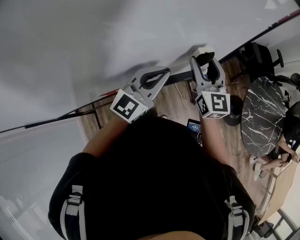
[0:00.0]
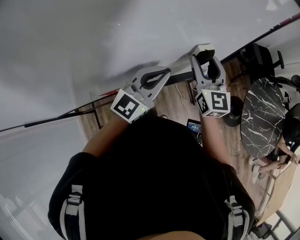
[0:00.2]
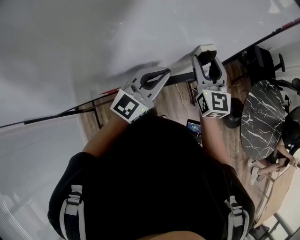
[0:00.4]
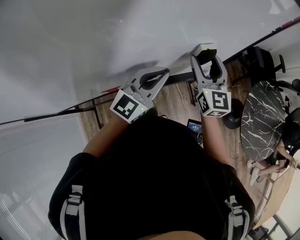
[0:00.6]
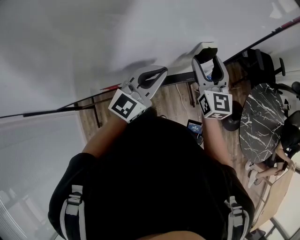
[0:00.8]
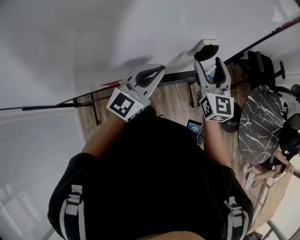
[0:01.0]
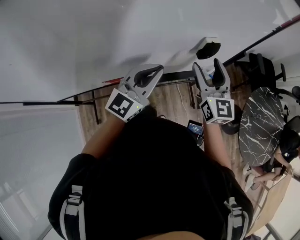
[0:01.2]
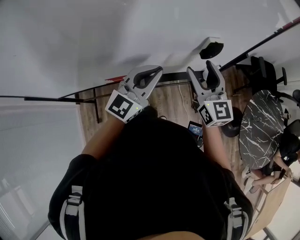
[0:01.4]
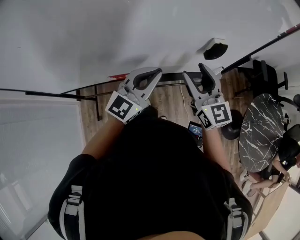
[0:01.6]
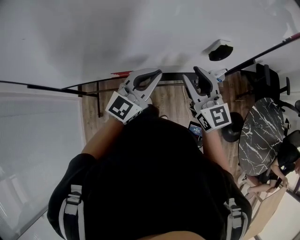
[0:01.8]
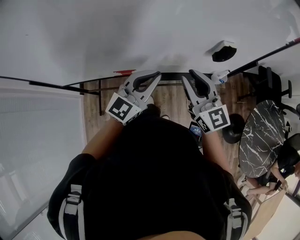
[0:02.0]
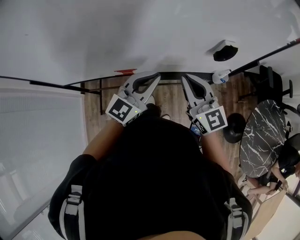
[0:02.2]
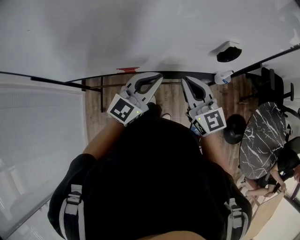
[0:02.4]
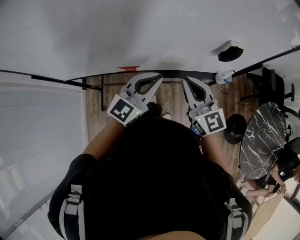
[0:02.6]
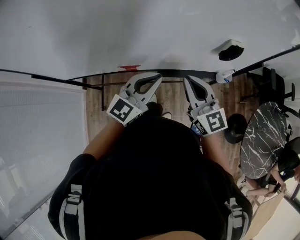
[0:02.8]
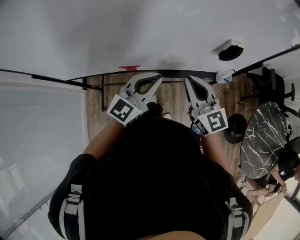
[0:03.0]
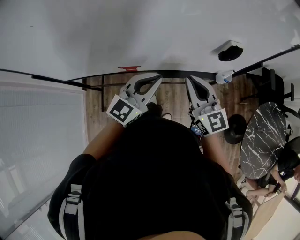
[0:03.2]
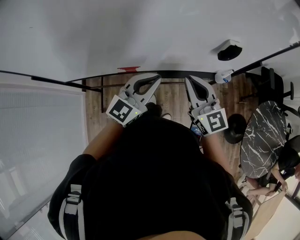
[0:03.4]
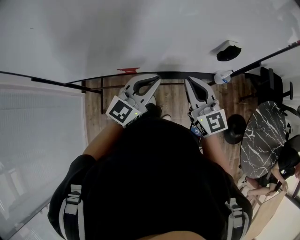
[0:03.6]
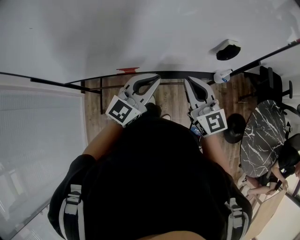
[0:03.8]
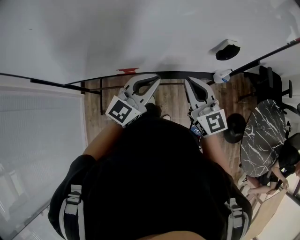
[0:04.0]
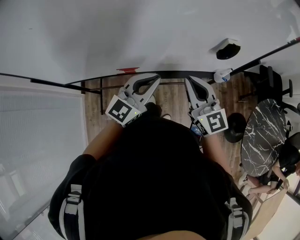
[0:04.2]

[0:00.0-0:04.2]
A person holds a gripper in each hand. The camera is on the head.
0:00.0 to 0:01.4: Both grippers travel together backward, approximately 10 cm.
0:01.4 to 0:02.8: The left gripper shifts some 5 cm to the left. Meanwhile the right gripper goes some 10 cm to the left and backward, and closes.
0:02.8 to 0:04.2: Neither gripper changes place.

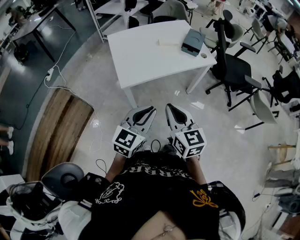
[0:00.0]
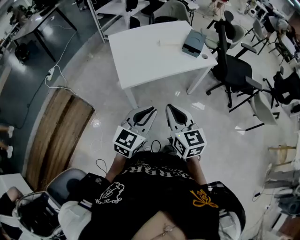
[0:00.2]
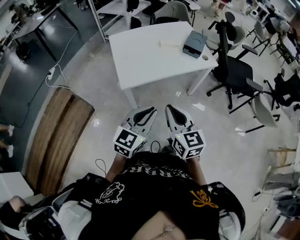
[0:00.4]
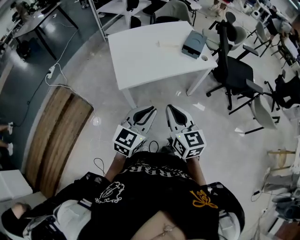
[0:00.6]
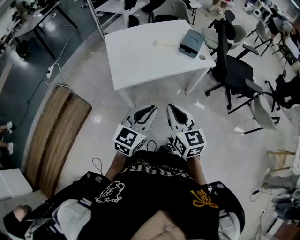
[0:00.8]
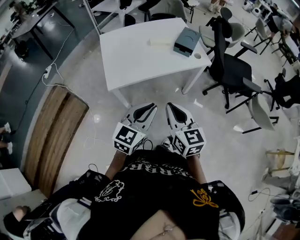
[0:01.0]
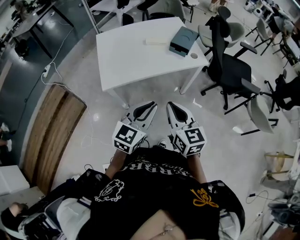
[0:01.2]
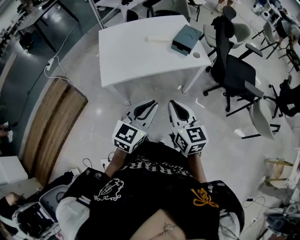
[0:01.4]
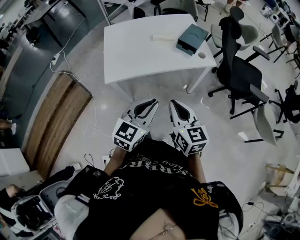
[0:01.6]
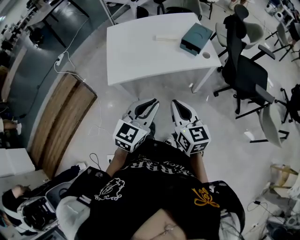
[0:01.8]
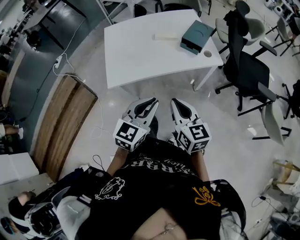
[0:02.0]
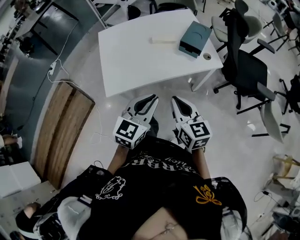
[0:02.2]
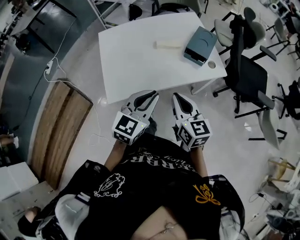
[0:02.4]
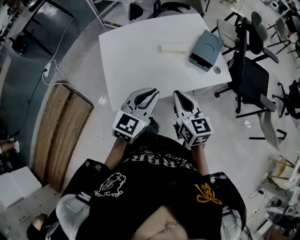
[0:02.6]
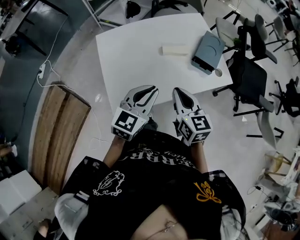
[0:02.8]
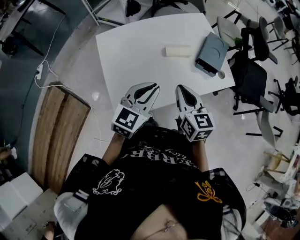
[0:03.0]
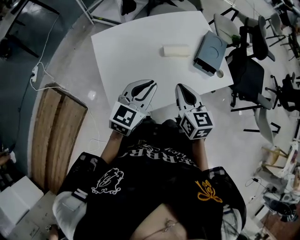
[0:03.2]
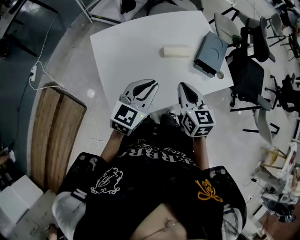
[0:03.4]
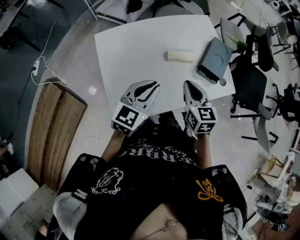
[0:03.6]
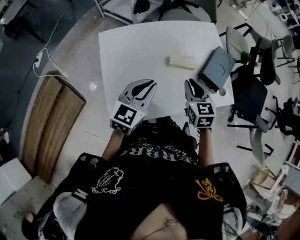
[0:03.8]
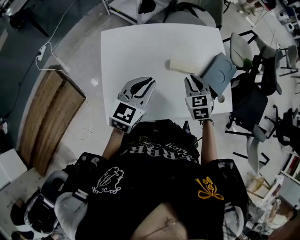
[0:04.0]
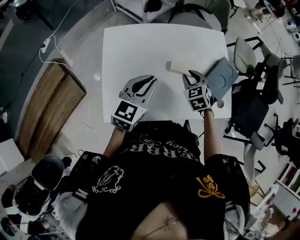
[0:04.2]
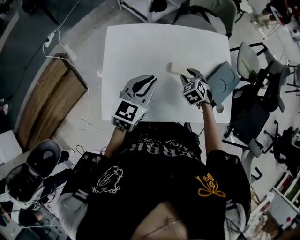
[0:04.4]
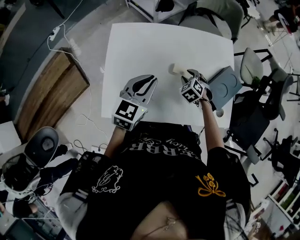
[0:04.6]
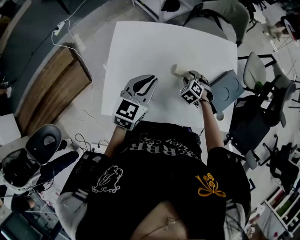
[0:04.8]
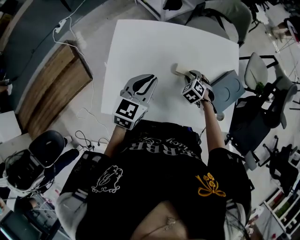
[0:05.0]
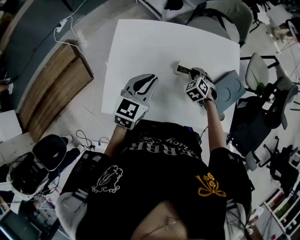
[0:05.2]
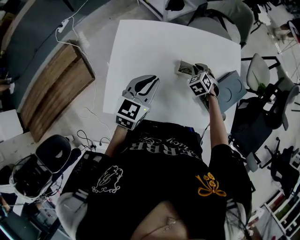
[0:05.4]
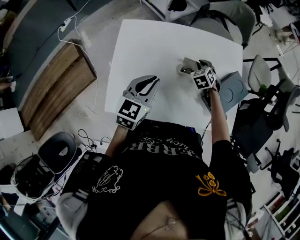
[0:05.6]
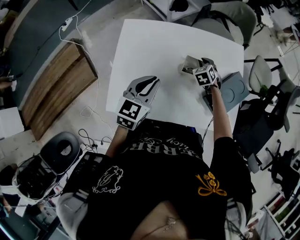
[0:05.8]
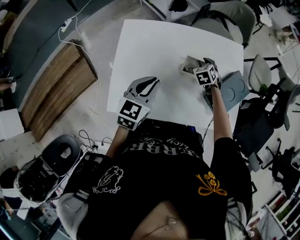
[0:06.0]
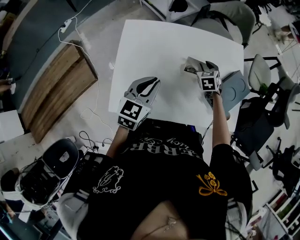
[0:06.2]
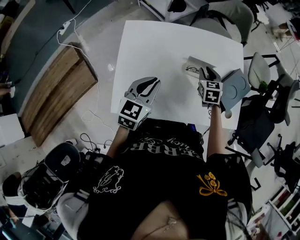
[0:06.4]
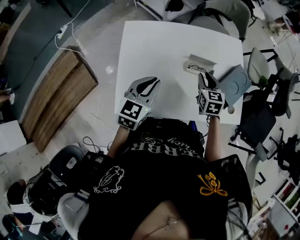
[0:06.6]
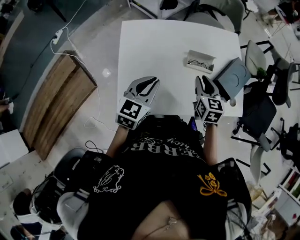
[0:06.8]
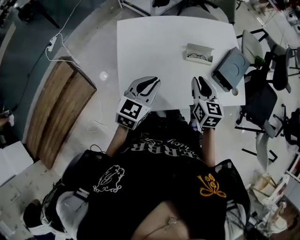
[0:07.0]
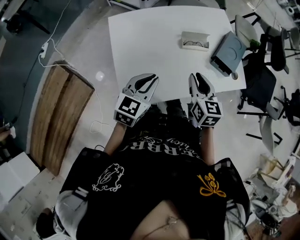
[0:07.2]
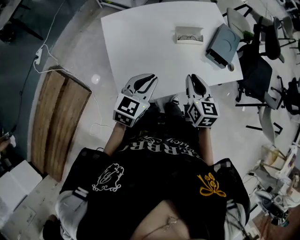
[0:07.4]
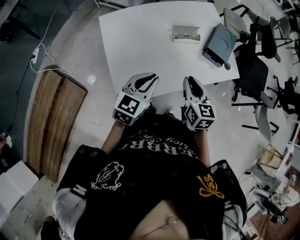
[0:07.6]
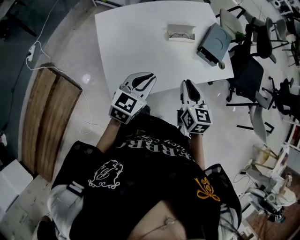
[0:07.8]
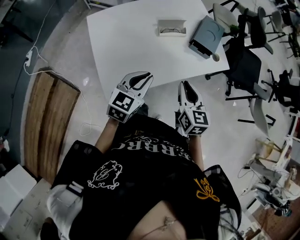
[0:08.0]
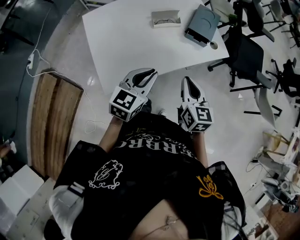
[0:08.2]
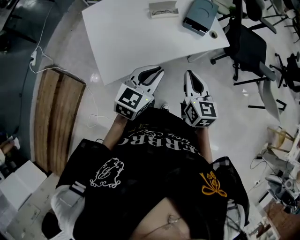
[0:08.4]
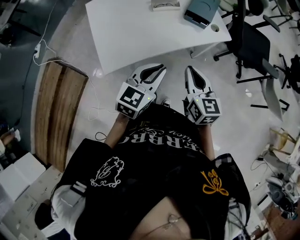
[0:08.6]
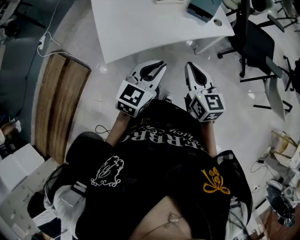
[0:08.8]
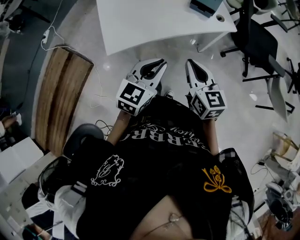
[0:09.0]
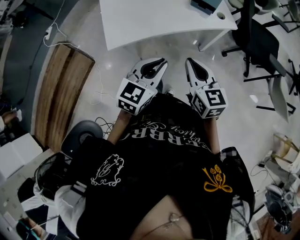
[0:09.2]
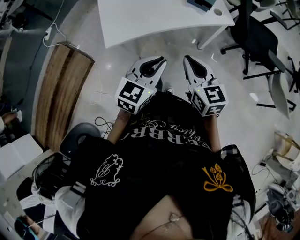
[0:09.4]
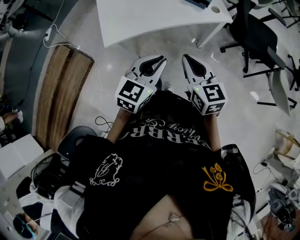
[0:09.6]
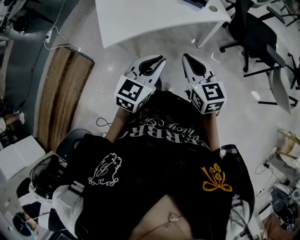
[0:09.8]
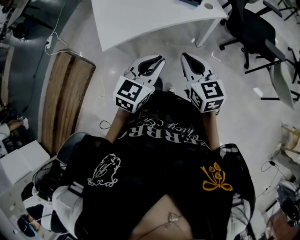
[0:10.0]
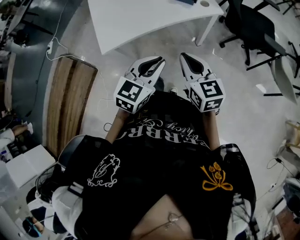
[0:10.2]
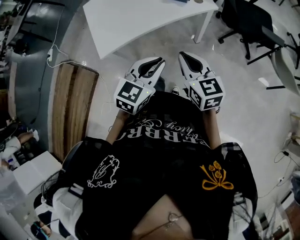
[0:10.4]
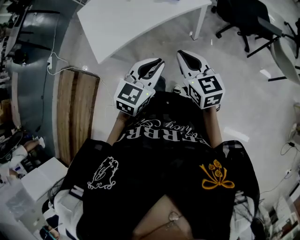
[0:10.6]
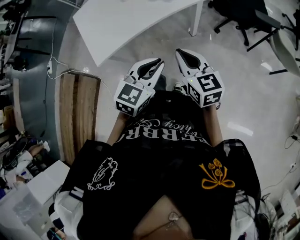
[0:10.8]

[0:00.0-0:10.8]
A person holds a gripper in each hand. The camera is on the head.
0:00.0 to 0:01.6: Both grippers move to the right and forward, some 20 cm.
0:01.6 to 0:03.0: The grippers both shift forward and to the left by about 35 cm.
0:03.0 to 0:04.6: The left gripper goes approximately 15 cm forward, and changes its angle by about 30 degrees, while the right gripper is displaced forward and downward by about 35 cm, rolls counterclockwise, seen from behind, by about 60 degrees, and opens up.
0:04.6 to 0:06.2: The right gripper moves forward, roughly 5 cm, changes its angle by some 30 degrees, and closes, then reopens.
0:06.2 to 0:07.8: The right gripper heads backward, covering roughly 35 cm, and rotates approximately 50 degrees, while the left gripper goes some 15 cm backward, and swivels some 30 degrees.
0:07.8 to 0:09.2: The two grippers go some 30 cm backward and to the right.
0:09.2 to 0:10.8: The grippers both shift to the right by approximately 10 cm.

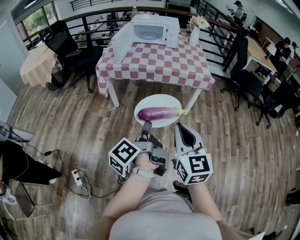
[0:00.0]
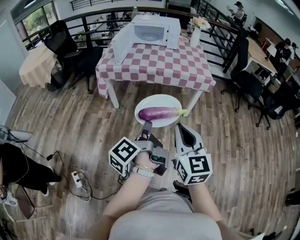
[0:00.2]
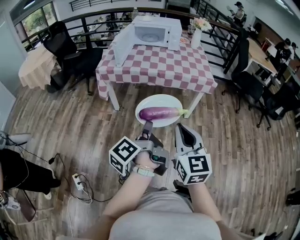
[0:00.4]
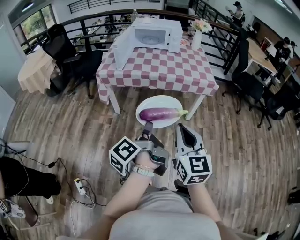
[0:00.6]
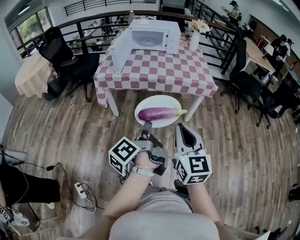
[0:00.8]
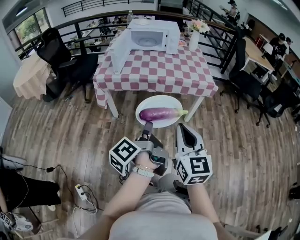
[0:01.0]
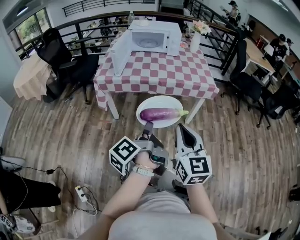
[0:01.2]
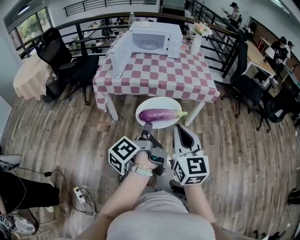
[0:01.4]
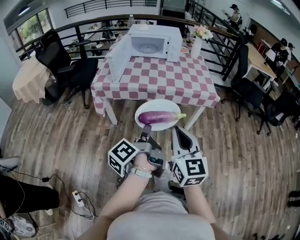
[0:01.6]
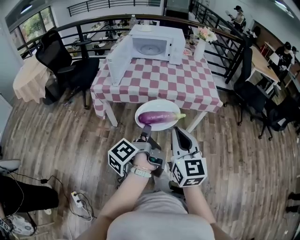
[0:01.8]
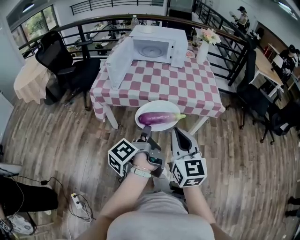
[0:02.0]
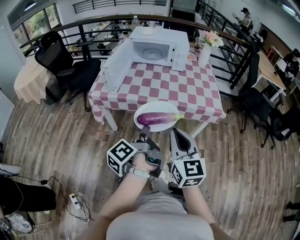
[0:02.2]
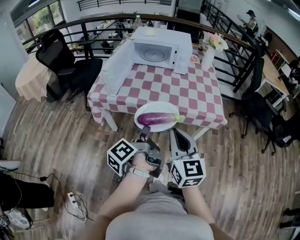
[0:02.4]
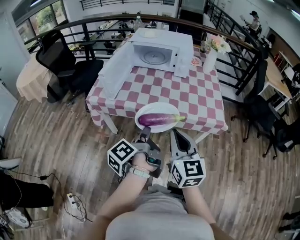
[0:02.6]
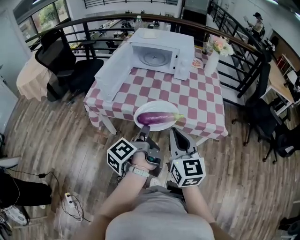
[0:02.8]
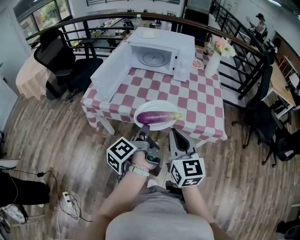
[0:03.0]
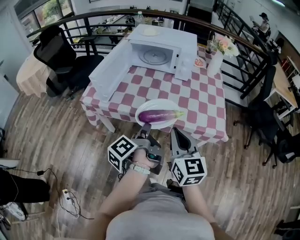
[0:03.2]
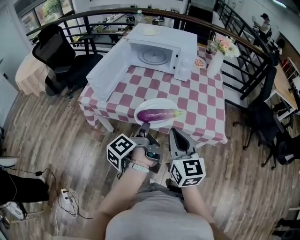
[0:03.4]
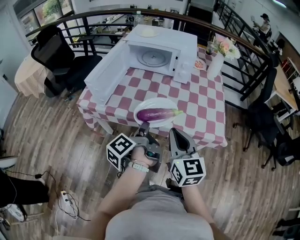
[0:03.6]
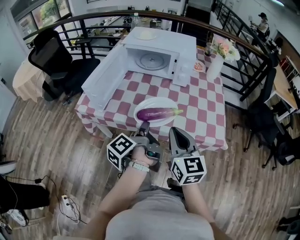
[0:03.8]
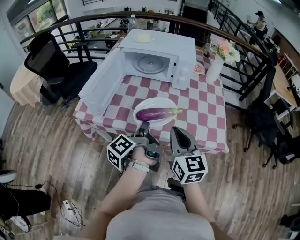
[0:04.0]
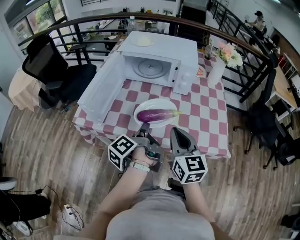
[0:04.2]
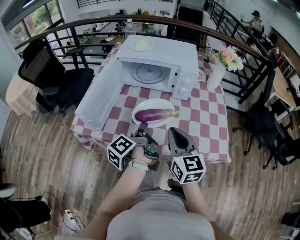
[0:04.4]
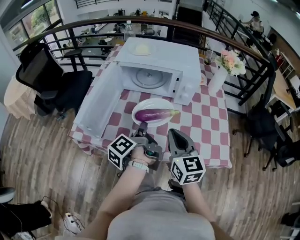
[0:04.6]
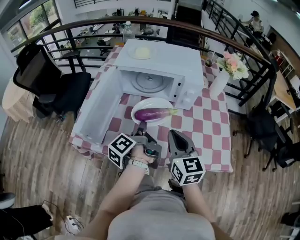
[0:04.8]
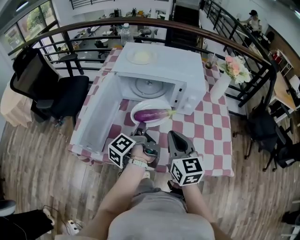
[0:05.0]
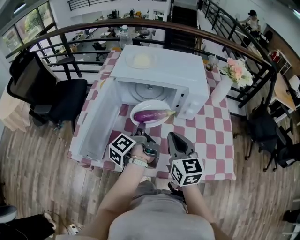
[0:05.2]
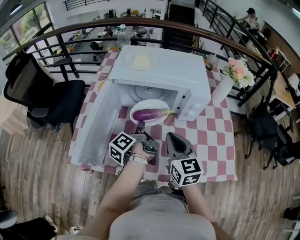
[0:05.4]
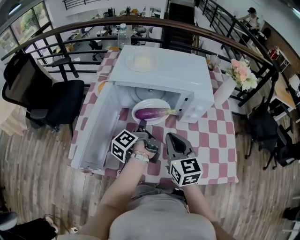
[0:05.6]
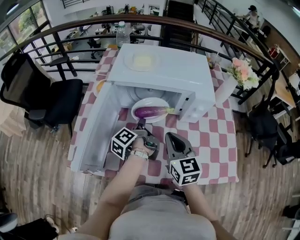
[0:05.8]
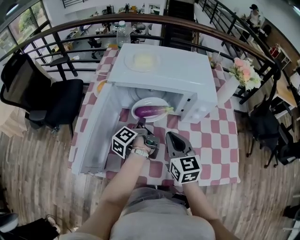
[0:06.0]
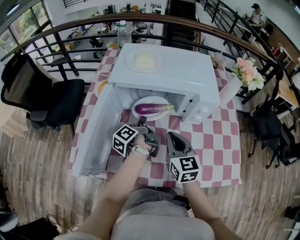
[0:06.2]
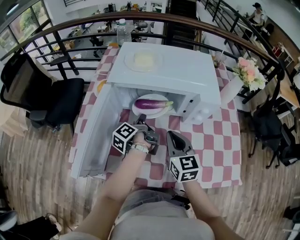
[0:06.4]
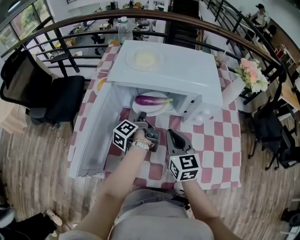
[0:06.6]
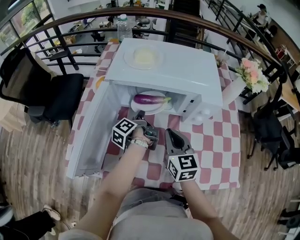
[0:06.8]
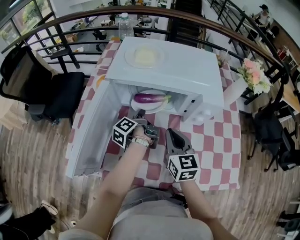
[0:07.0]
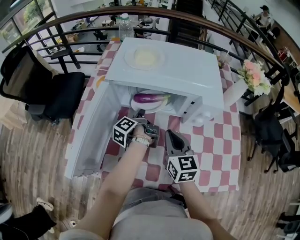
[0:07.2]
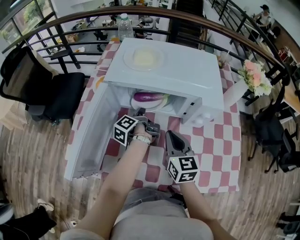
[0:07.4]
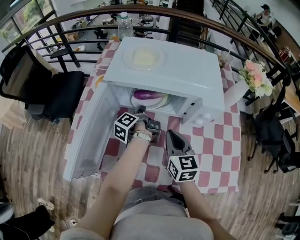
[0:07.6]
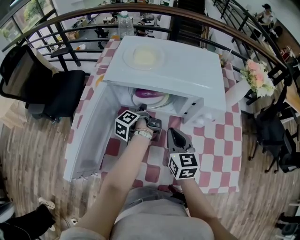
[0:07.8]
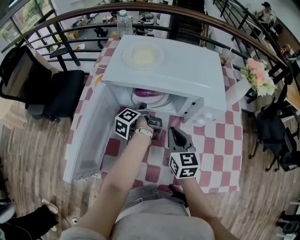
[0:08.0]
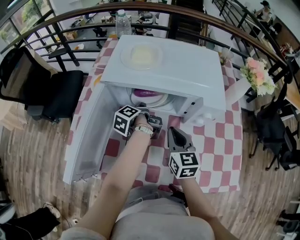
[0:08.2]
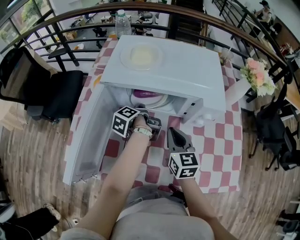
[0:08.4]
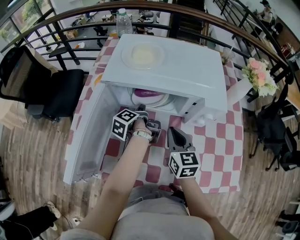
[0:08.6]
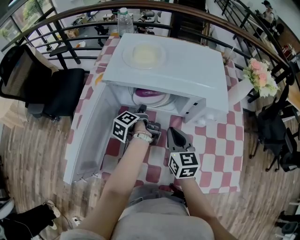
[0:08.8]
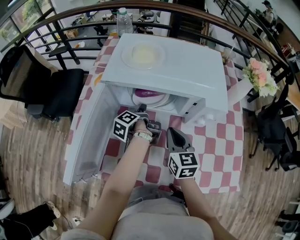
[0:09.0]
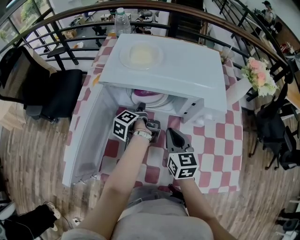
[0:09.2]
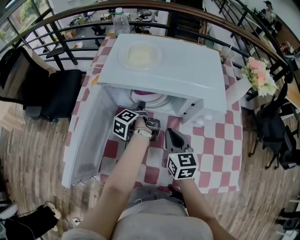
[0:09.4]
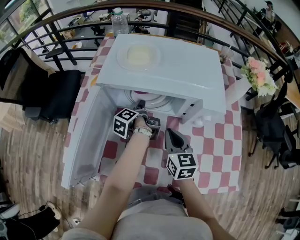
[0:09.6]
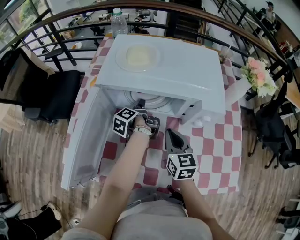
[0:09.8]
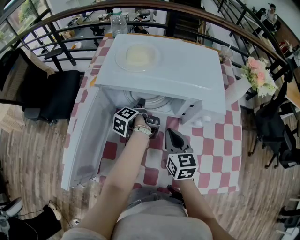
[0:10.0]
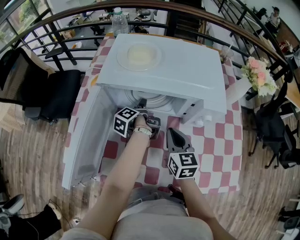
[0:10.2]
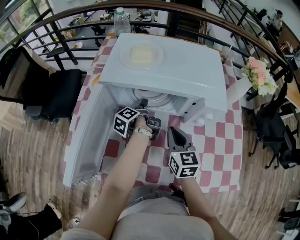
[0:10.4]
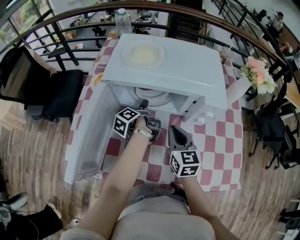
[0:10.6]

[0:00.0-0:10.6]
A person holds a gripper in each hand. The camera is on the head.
0:00.0 to 0:01.6: The right gripper changes place by approximately 20 cm.
0:01.6 to 0:03.0: The right gripper ends up roughly 30 cm from where it was.
0:03.0 to 0:04.6: The right gripper changes place by approximately 25 cm.
0:04.6 to 0:06.0: The right gripper ends up approximately 20 cm from where it was.
0:06.0 to 0:07.6: The right gripper ends up roughly 10 cm from where it was.
